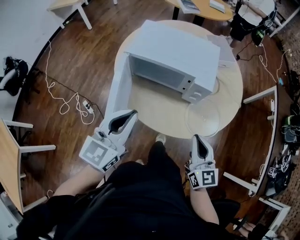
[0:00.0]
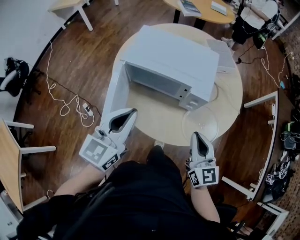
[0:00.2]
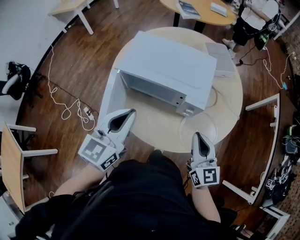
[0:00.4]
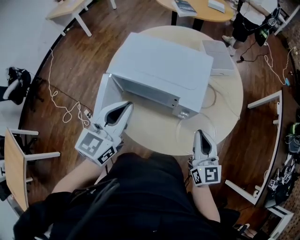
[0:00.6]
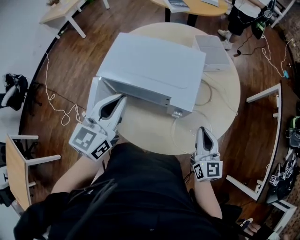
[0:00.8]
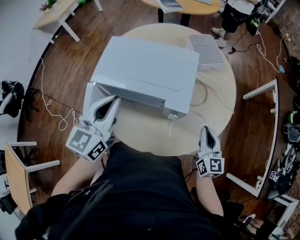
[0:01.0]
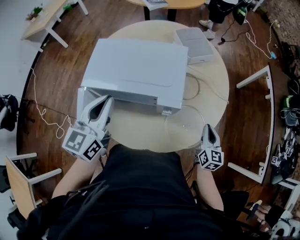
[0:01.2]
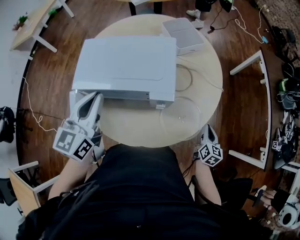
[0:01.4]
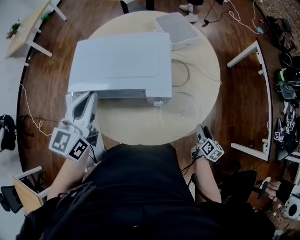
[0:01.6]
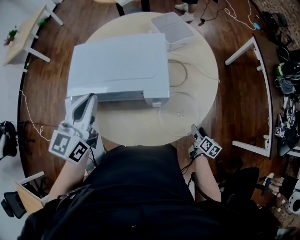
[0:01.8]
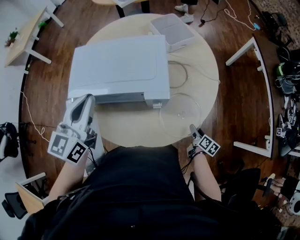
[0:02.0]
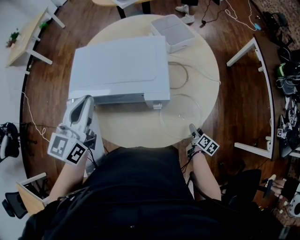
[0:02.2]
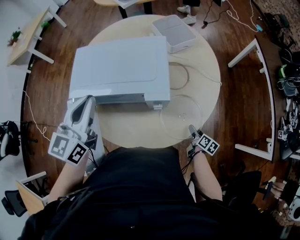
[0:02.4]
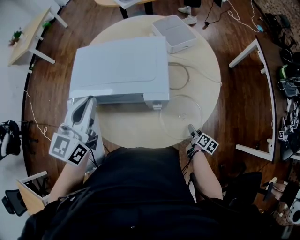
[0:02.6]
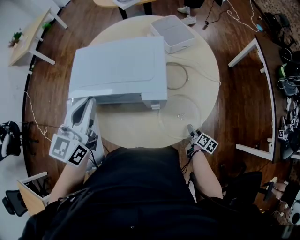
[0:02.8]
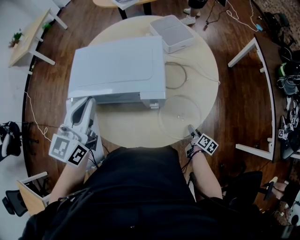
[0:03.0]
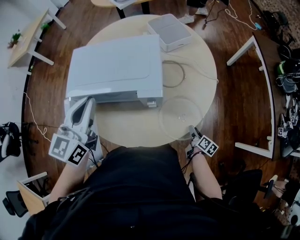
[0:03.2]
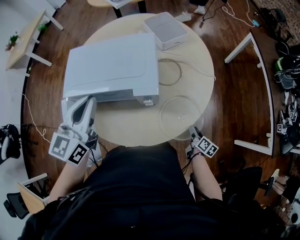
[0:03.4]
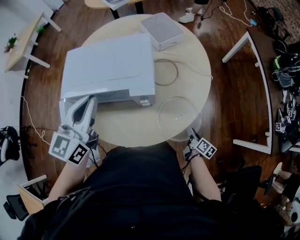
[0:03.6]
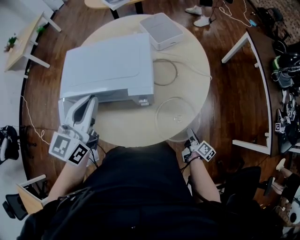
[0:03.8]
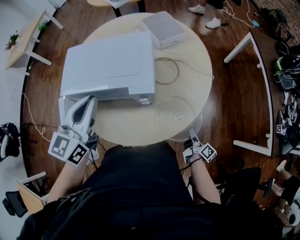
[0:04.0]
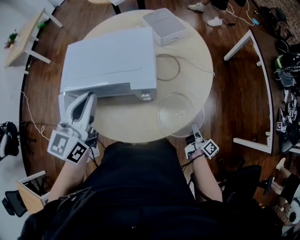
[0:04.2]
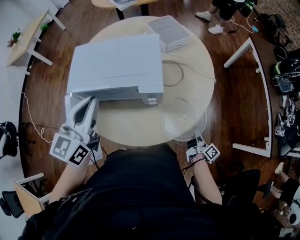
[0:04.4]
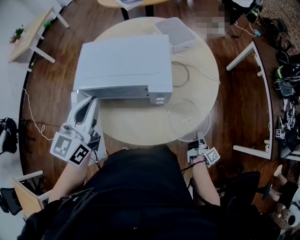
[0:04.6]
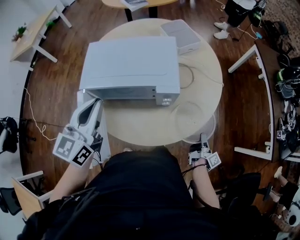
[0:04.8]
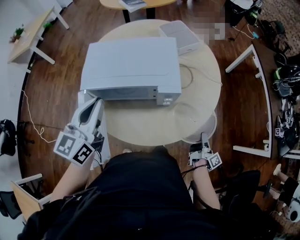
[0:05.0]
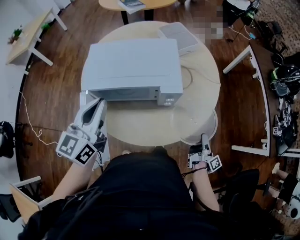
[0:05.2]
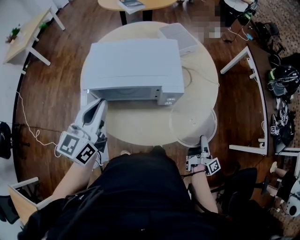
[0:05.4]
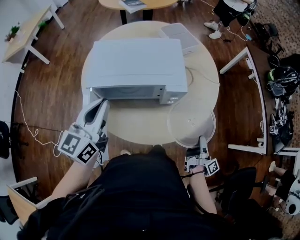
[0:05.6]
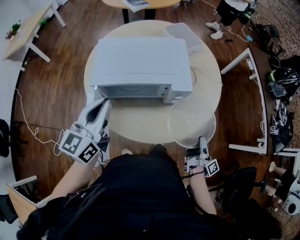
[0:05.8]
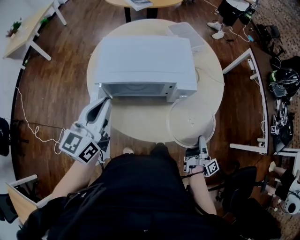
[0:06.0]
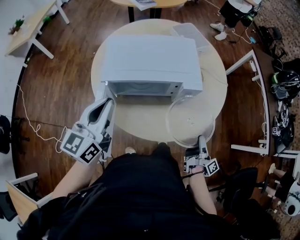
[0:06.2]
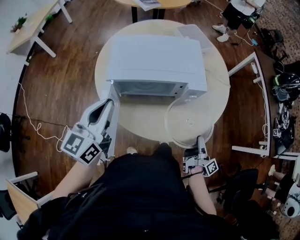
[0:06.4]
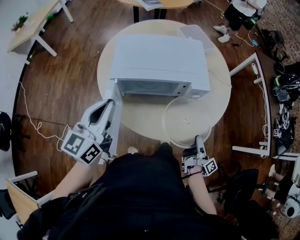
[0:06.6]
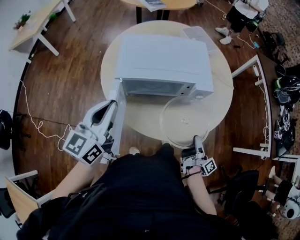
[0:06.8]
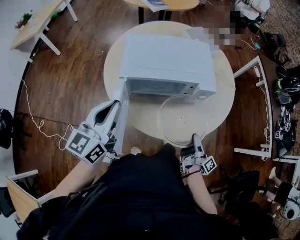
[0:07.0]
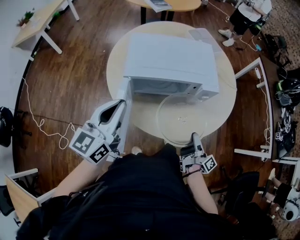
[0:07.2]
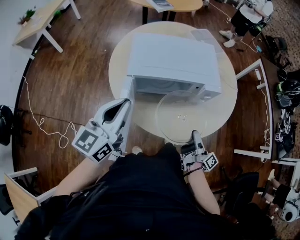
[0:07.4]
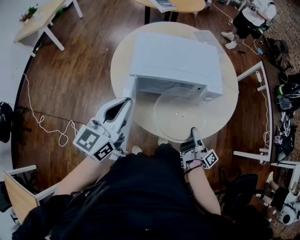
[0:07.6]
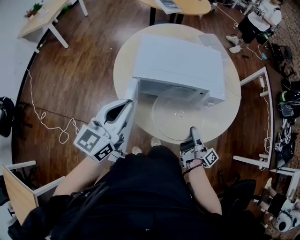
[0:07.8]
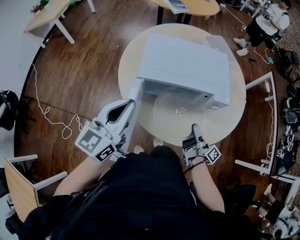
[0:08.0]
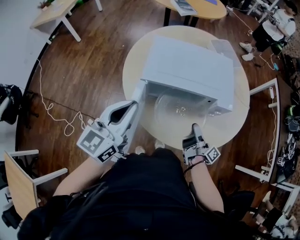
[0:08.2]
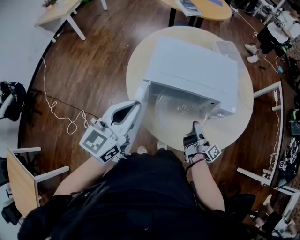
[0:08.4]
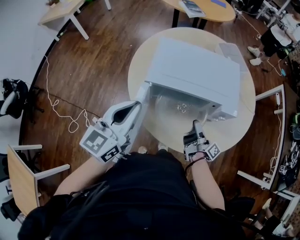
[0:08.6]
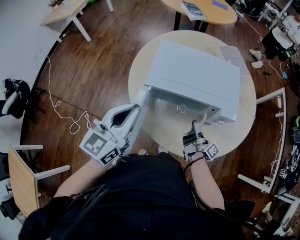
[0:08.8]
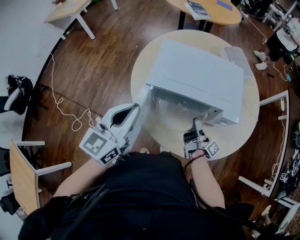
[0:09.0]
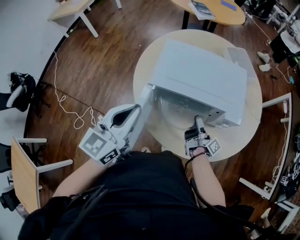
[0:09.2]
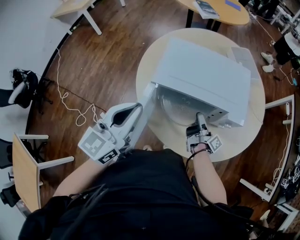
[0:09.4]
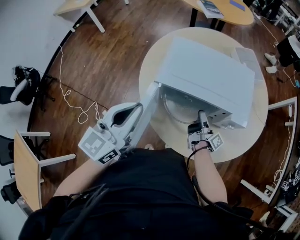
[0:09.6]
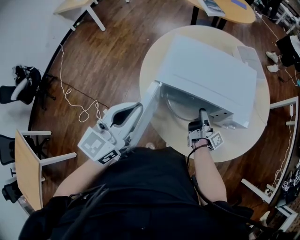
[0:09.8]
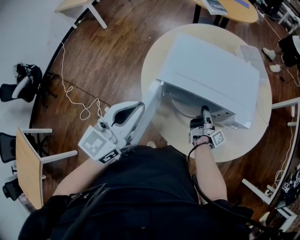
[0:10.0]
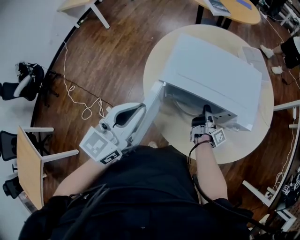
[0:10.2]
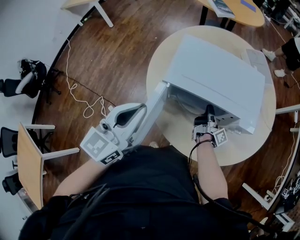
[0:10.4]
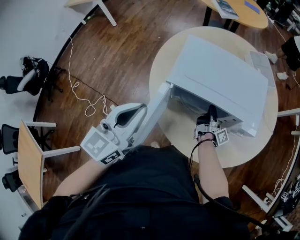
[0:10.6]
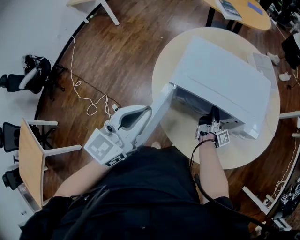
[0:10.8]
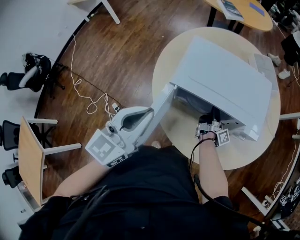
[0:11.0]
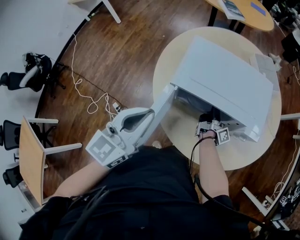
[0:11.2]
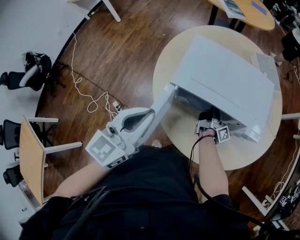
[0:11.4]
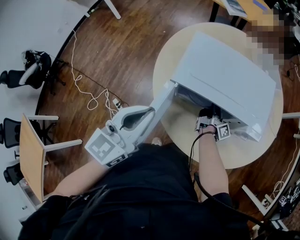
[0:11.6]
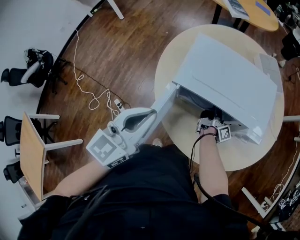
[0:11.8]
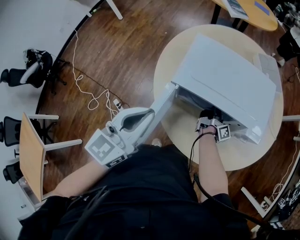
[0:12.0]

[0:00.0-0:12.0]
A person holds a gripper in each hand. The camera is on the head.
0:00.0 to 0:01.6: The right gripper goes about 30 cm downward and to the right, turns by roughly 60 degrees, and opens its fingers; the left gripper shifts some 20 cm forward.
0:01.6 to 0:03.0: The right gripper is displaced downward by about 10 cm, and rotates approximately 20 degrees.
0:03.0 to 0:04.4: The right gripper is displaced upward by approximately 5 cm, rotates about 30 degrees, and closes up.
0:04.4 to 0:06.0: The right gripper goes about 15 cm upward, backward and to the left, and turns by roughly 20 degrees. Meanwhile the left gripper goes approximately 10 cm to the left.
0:06.0 to 0:07.6: The right gripper shifts some 15 cm to the left; the left gripper shifts by some 5 cm.
0:07.6 to 0:09.0: The right gripper moves forward and to the left, some 15 cm.
0:09.0 to 0:10.4: The right gripper is displaced forward by about 5 cm.
0:10.4 to 0:12.0: The right gripper changes place by about 5 cm.

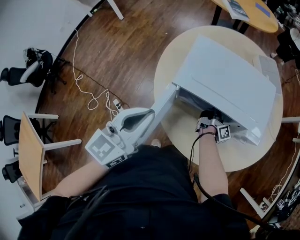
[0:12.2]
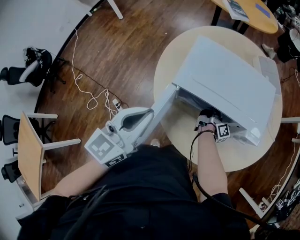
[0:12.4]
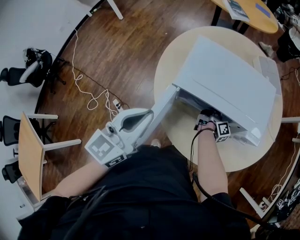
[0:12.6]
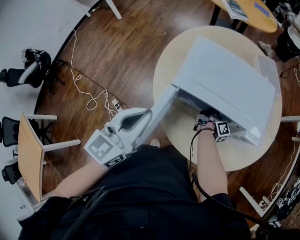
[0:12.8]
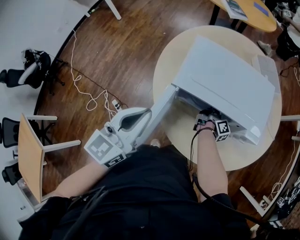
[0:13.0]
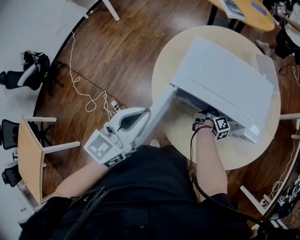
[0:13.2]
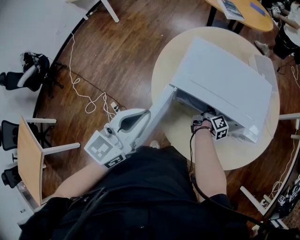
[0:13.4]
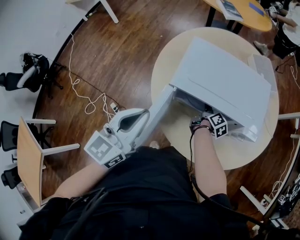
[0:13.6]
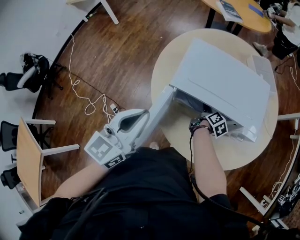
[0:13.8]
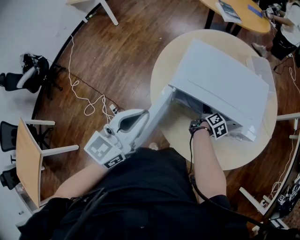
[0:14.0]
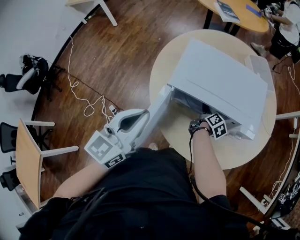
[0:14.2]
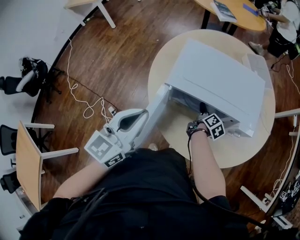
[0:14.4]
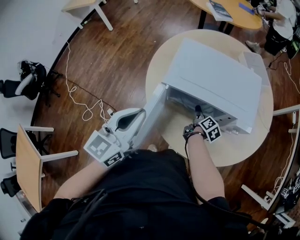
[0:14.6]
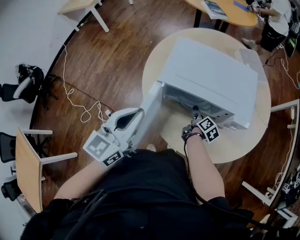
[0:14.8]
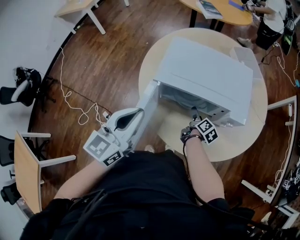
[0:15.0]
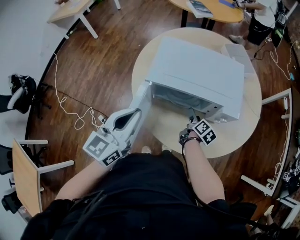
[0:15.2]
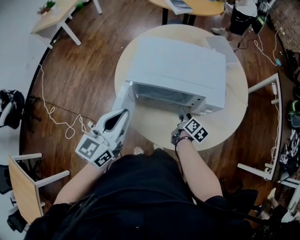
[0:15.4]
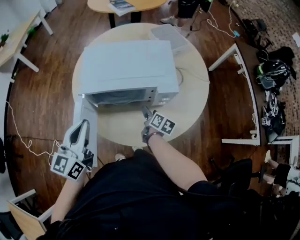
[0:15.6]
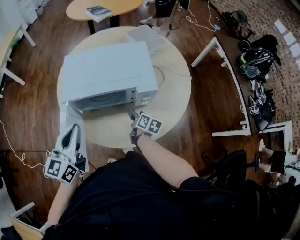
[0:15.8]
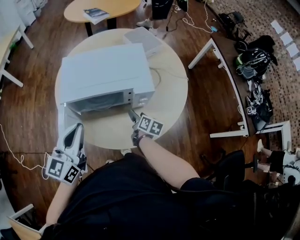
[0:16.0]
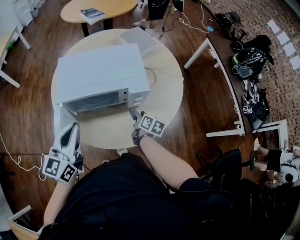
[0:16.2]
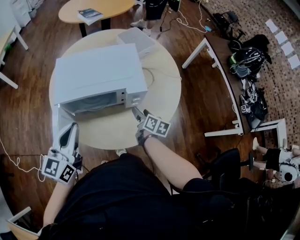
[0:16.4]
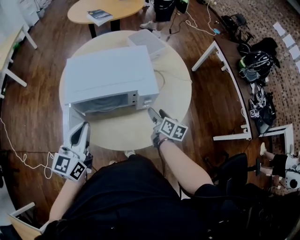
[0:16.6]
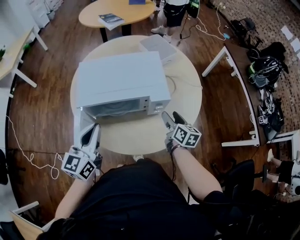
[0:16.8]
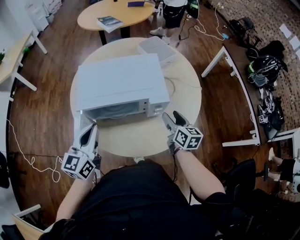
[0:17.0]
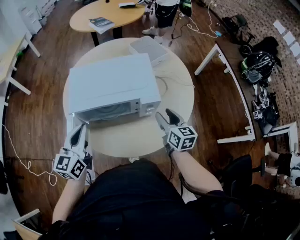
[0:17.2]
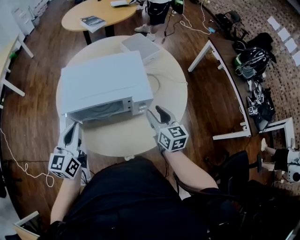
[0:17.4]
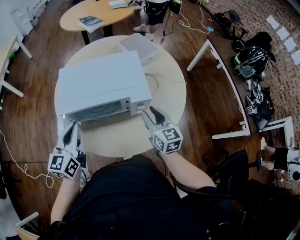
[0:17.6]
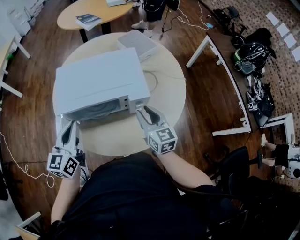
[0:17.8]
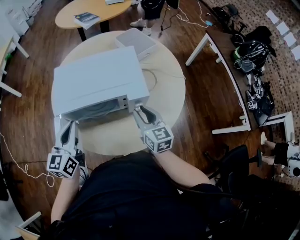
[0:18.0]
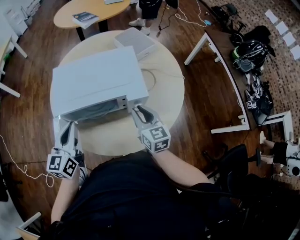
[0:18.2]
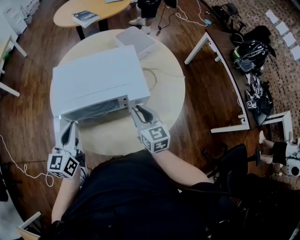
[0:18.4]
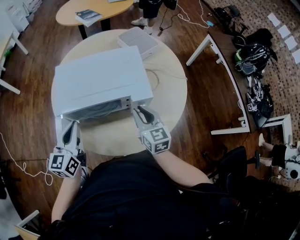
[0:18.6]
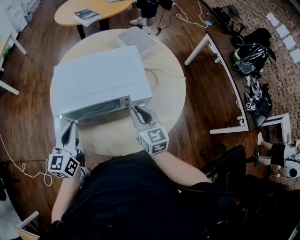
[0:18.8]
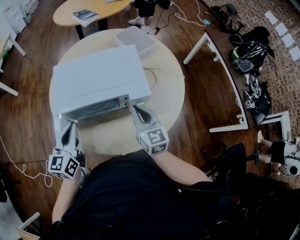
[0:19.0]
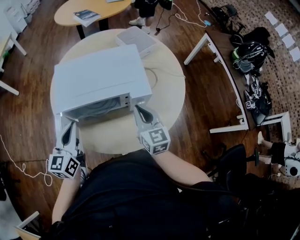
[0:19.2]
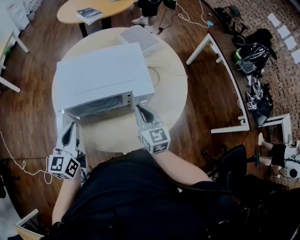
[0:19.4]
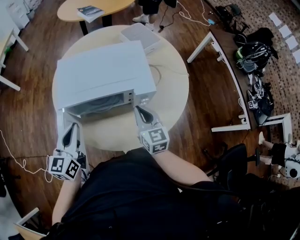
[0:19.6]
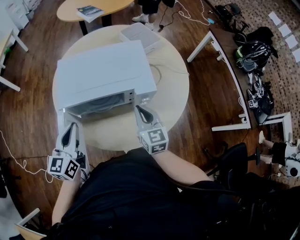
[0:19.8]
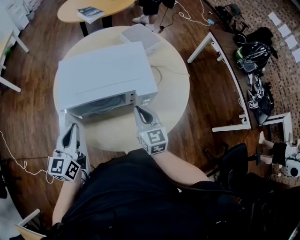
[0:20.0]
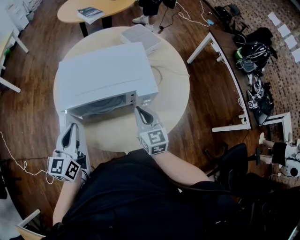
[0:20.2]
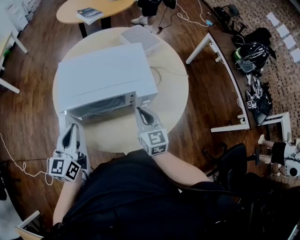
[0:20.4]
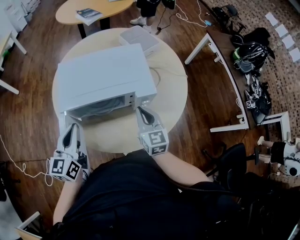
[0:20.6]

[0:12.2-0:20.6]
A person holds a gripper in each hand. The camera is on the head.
0:12.2 to 0:13.6: The right gripper rotates approximately 30 degrees, and opens its fingers.
0:13.6 to 0:15.0: The right gripper goes about 5 cm backward.
0:15.0 to 0:16.4: The right gripper is displaced to the right and upward by approximately 15 cm, while the left gripper shifts about 5 cm to the right.
0:16.4 to 0:17.8: The left gripper shifts roughly 5 cm forward; the right gripper travels upward by roughly 10 cm, swivels some 40 degrees, and closes.
0:17.8 to 0:19.2: The right gripper closes up.
0:19.2 to 0:20.6: The grippers move only a little.

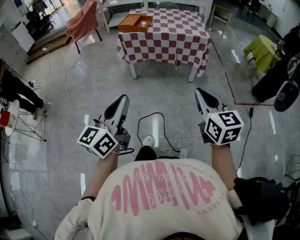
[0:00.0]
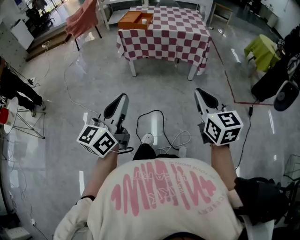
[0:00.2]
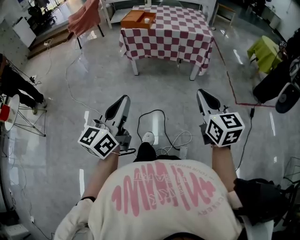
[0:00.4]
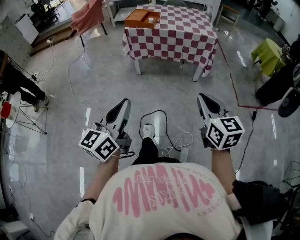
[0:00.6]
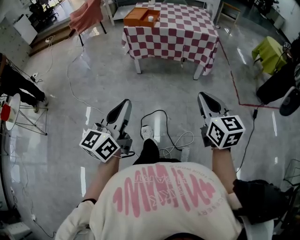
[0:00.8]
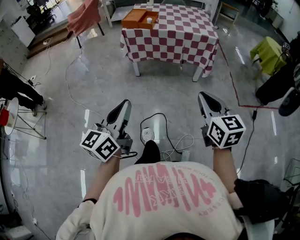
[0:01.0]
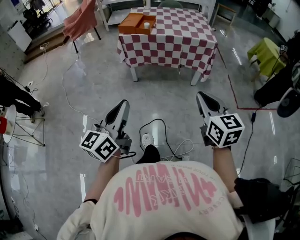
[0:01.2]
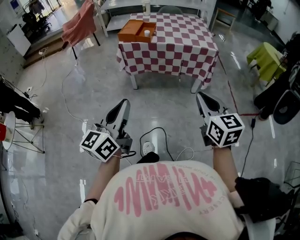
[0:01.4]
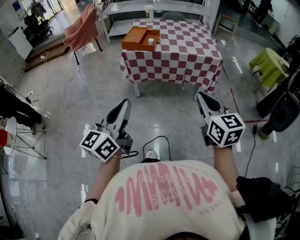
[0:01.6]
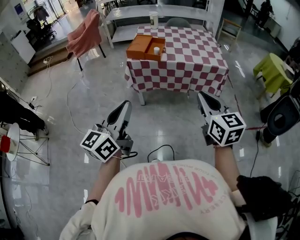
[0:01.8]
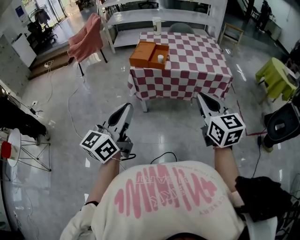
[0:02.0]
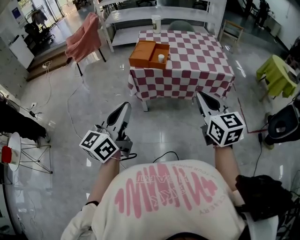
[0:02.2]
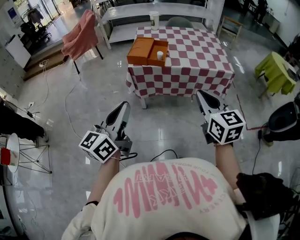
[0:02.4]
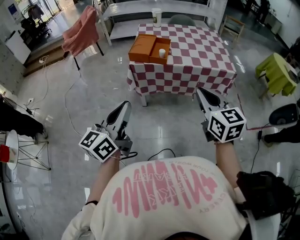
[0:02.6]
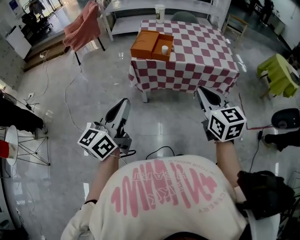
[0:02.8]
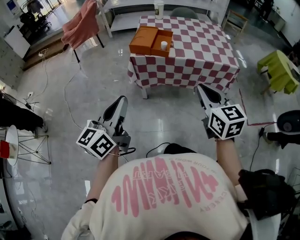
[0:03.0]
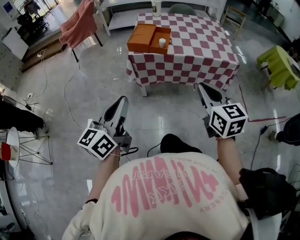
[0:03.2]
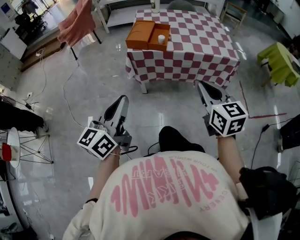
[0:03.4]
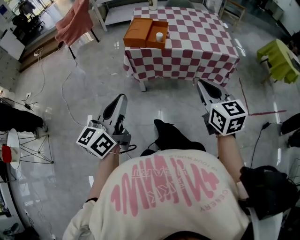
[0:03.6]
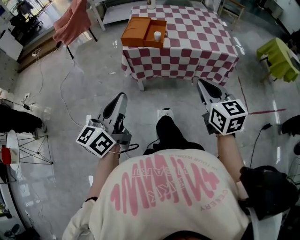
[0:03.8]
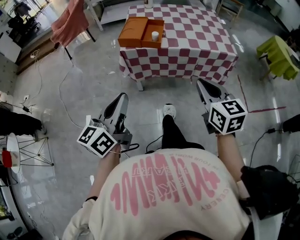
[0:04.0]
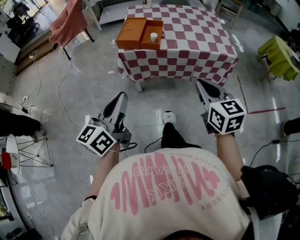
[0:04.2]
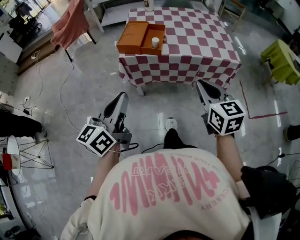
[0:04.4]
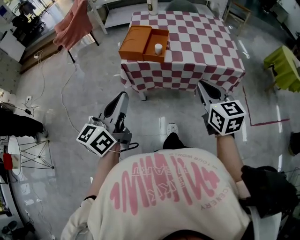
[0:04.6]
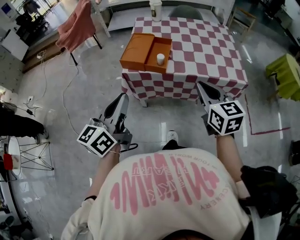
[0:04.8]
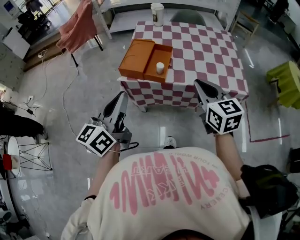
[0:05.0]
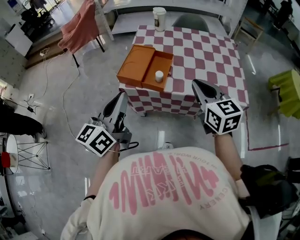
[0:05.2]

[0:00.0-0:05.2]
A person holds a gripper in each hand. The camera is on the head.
0:00.0 to 0:01.8: Both grippers travel together forward, approximately 30 cm.
0:01.8 to 0:03.4: The two grippers go roughly 10 cm forward and to the left.
0:03.4 to 0:05.2: The grippers both shift forward by approximately 30 cm.
